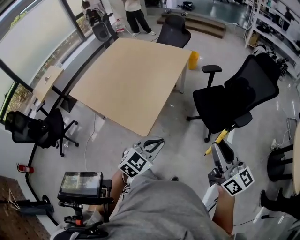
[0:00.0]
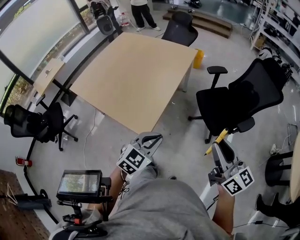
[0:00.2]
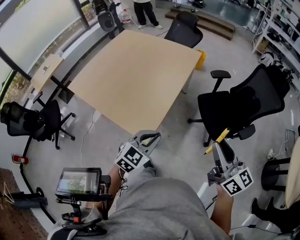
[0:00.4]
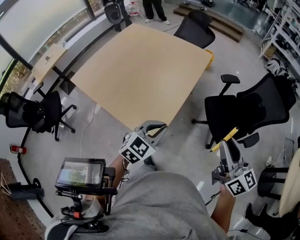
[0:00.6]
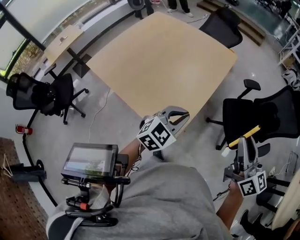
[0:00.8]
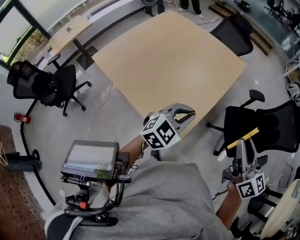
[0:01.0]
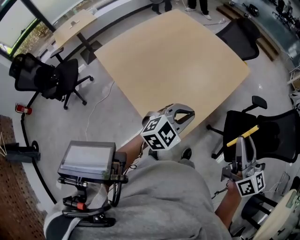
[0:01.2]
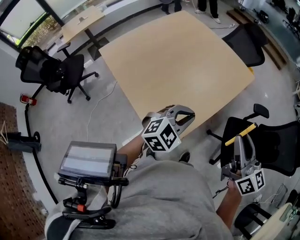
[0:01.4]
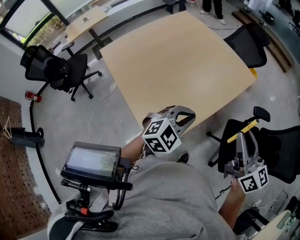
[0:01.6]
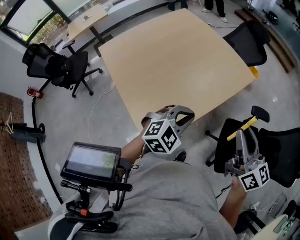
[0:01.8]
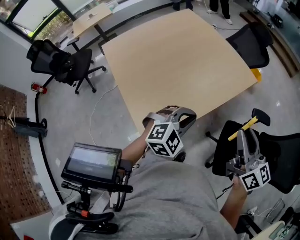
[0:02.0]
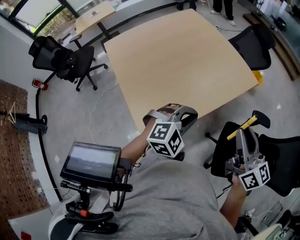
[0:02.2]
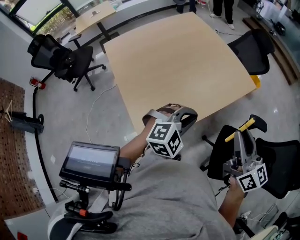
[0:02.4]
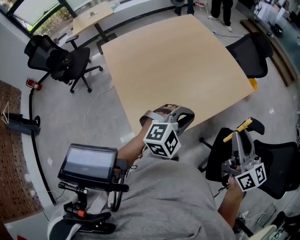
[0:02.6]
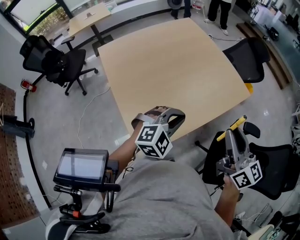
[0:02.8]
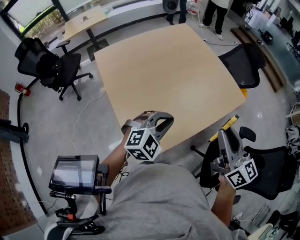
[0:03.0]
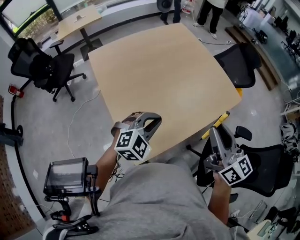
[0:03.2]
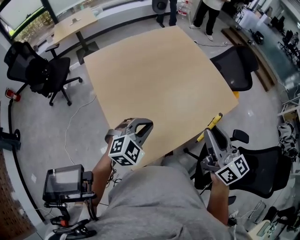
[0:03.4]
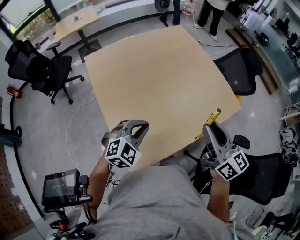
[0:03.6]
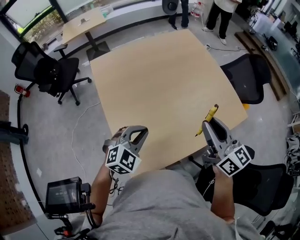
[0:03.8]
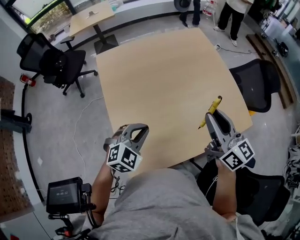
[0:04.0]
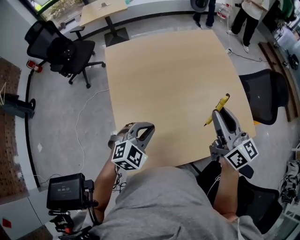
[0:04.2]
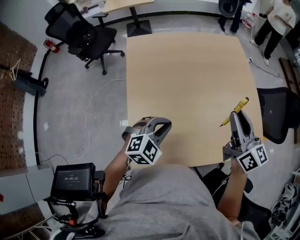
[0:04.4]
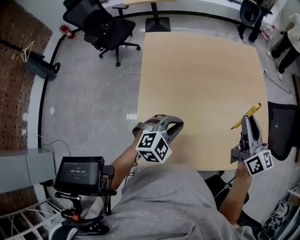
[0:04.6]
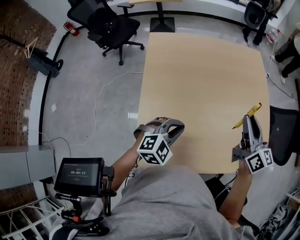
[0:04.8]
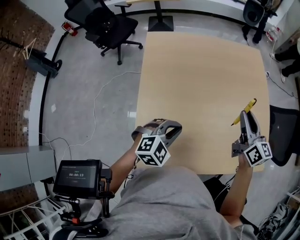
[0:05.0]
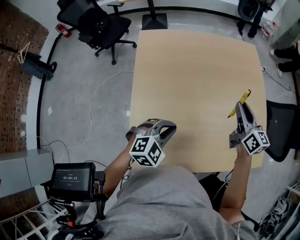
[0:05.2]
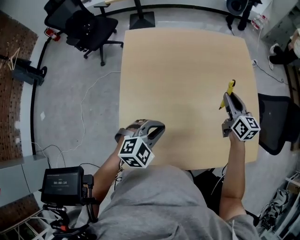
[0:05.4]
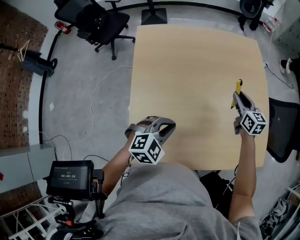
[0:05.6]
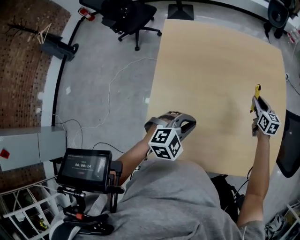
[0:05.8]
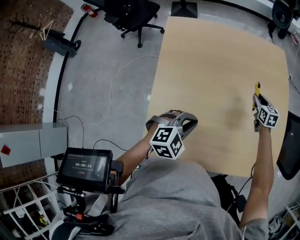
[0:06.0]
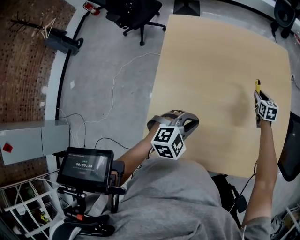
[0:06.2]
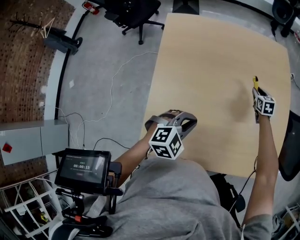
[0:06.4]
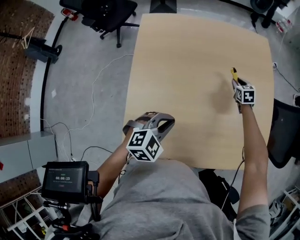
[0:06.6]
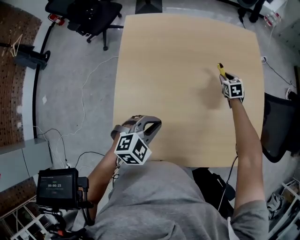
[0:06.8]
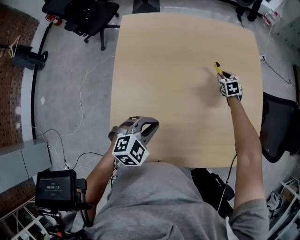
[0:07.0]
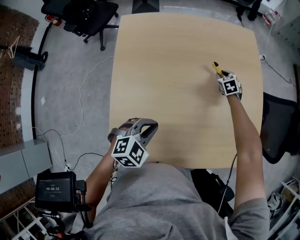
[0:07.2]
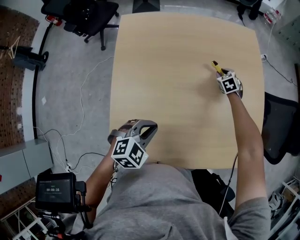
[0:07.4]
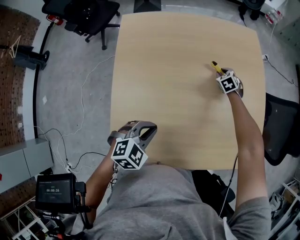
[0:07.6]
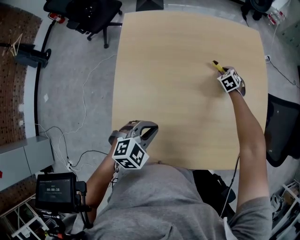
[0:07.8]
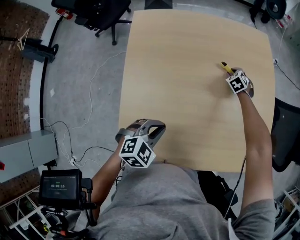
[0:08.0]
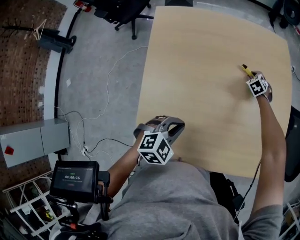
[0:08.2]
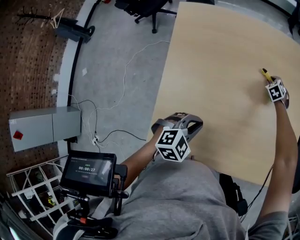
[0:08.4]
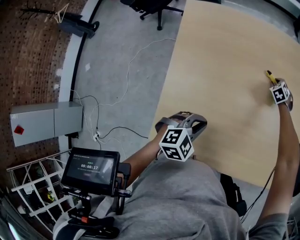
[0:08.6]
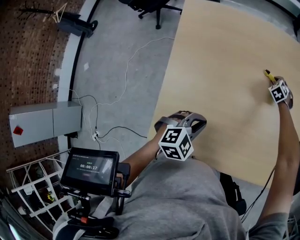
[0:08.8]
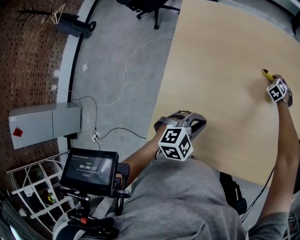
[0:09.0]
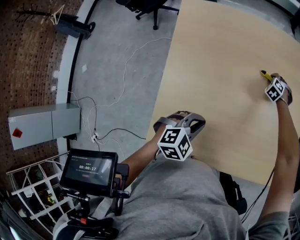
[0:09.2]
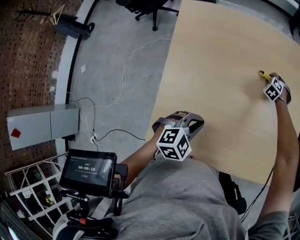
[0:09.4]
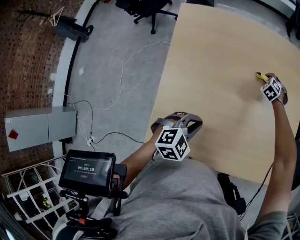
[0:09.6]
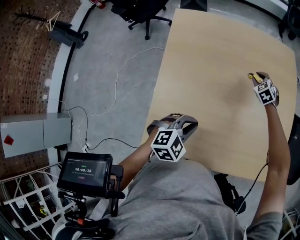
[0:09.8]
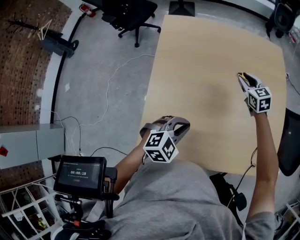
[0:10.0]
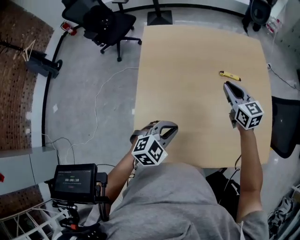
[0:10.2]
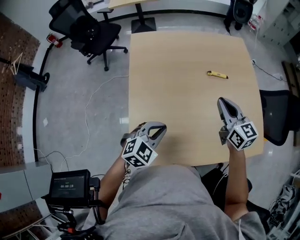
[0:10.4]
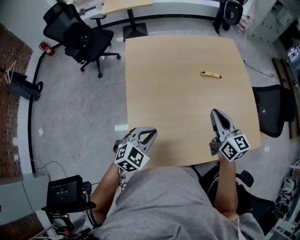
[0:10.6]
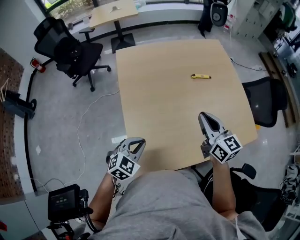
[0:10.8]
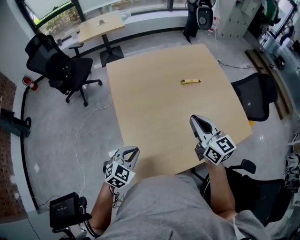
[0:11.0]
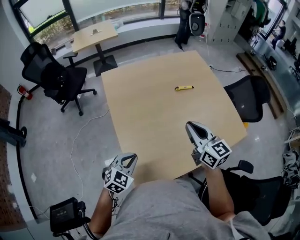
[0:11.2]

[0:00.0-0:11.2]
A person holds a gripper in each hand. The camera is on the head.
0:00.0 to 0:01.6: The right gripper shifts some 40 cm forward and to the left, and swivels approximately 20 degrees; the left gripper travels forward by roughly 30 cm.
0:01.6 to 0:03.2: The right gripper shifts about 15 cm forward and to the left; the left gripper shifts roughly 15 cm to the left and forward.
0:03.2 to 0:04.8: The left gripper is displaced forward and downward by roughly 15 cm, and turns by some 30 degrees; the right gripper shifts roughly 35 cm forward, and turns by some 20 degrees.
0:04.8 to 0:06.4: The right gripper goes about 35 cm downward and forward, and tilts its fingers about 40 degrees downward.
0:06.4 to 0:08.0: The right gripper travels downward by roughly 5 cm, and changes its angle by approximately 40 degrees.
0:09.6 to 0:11.2: The right gripper is displaced backward and upward by roughly 50 cm, points its fingers roughly 50 degrees further upward, and closes its fingers; the left gripper heads to the left and backward, covering some 20 cm.

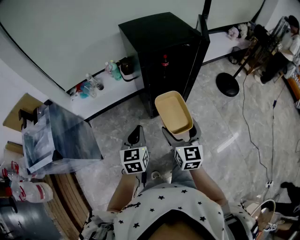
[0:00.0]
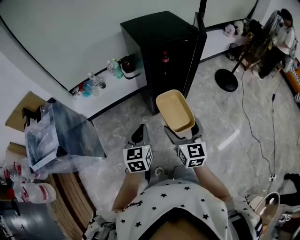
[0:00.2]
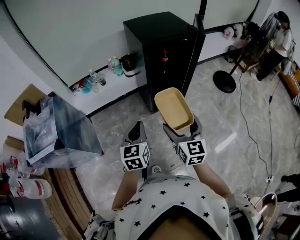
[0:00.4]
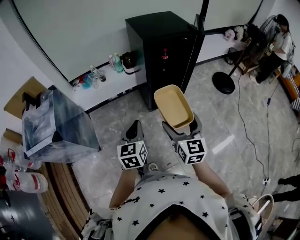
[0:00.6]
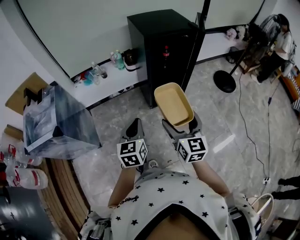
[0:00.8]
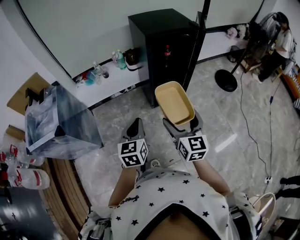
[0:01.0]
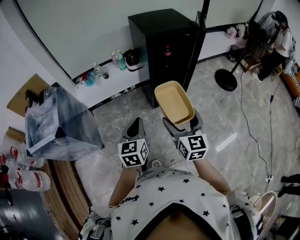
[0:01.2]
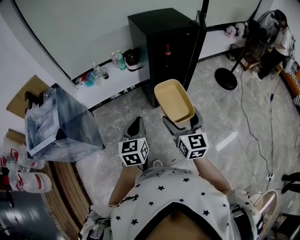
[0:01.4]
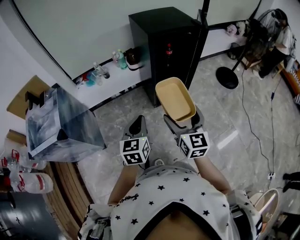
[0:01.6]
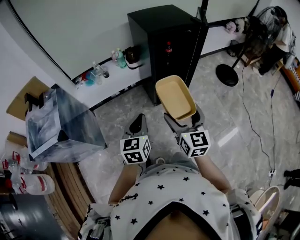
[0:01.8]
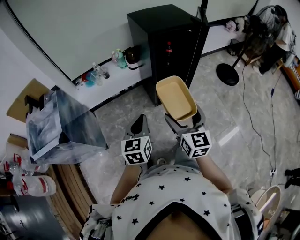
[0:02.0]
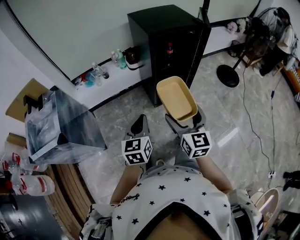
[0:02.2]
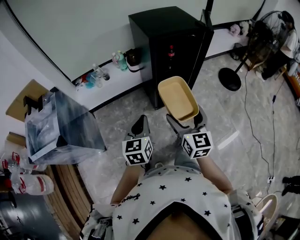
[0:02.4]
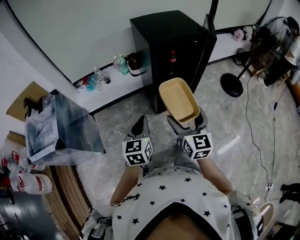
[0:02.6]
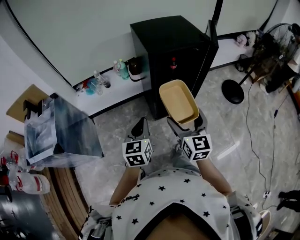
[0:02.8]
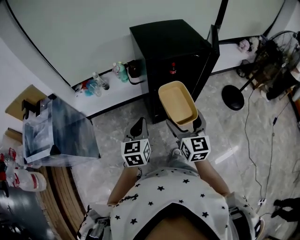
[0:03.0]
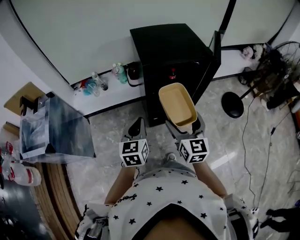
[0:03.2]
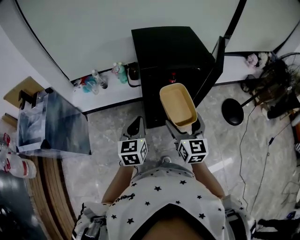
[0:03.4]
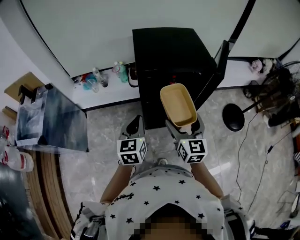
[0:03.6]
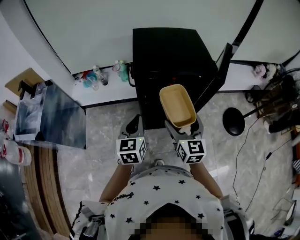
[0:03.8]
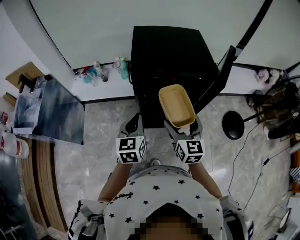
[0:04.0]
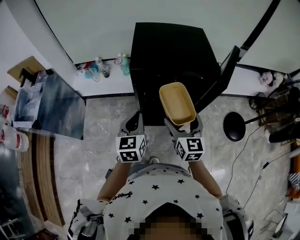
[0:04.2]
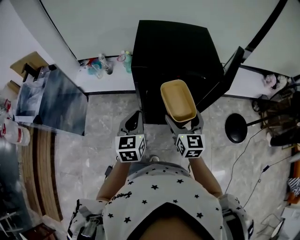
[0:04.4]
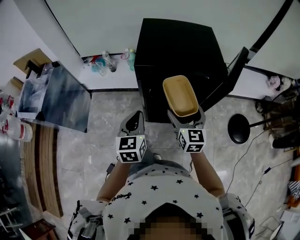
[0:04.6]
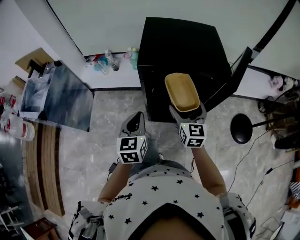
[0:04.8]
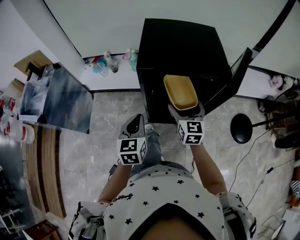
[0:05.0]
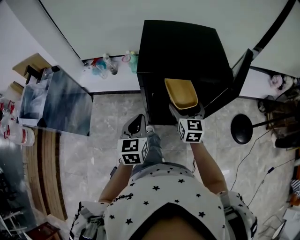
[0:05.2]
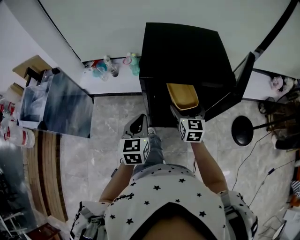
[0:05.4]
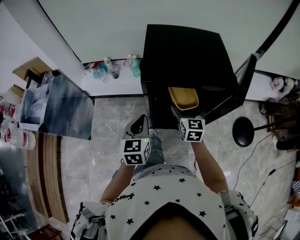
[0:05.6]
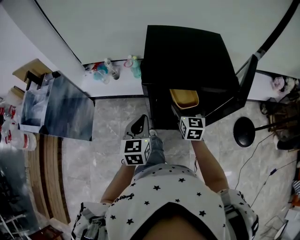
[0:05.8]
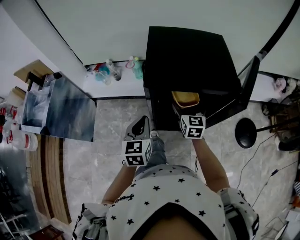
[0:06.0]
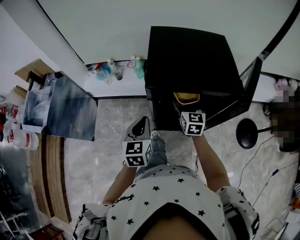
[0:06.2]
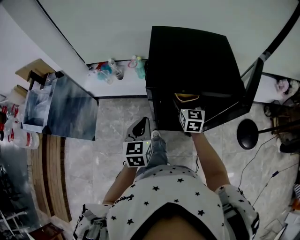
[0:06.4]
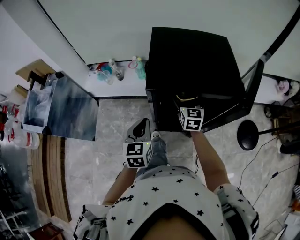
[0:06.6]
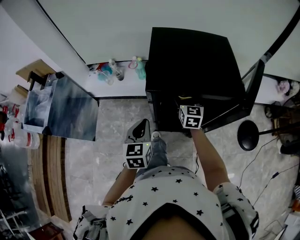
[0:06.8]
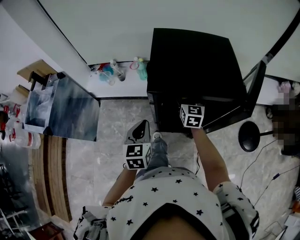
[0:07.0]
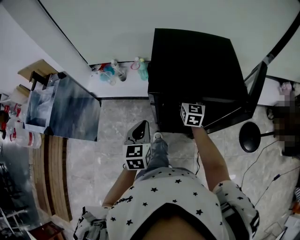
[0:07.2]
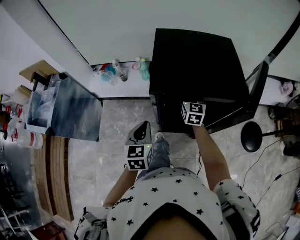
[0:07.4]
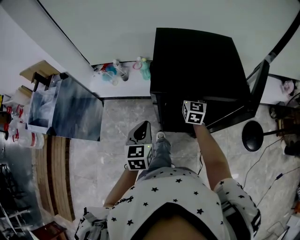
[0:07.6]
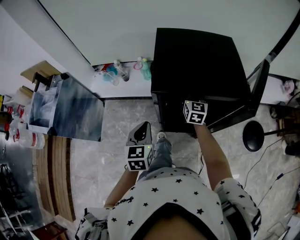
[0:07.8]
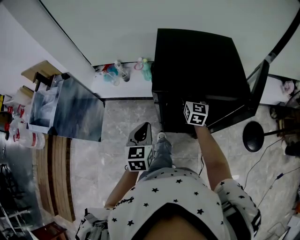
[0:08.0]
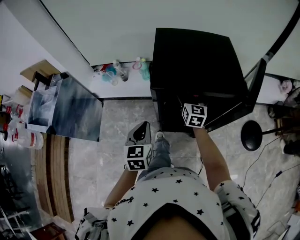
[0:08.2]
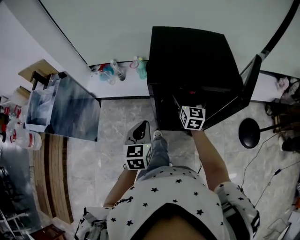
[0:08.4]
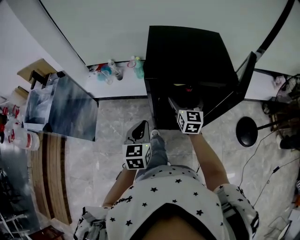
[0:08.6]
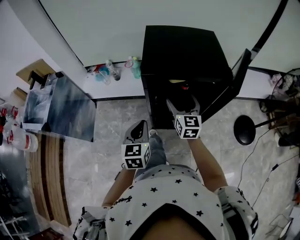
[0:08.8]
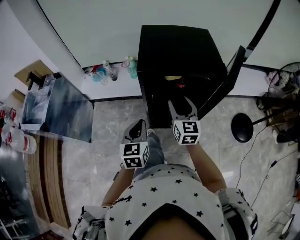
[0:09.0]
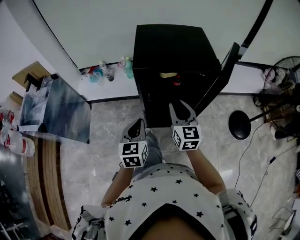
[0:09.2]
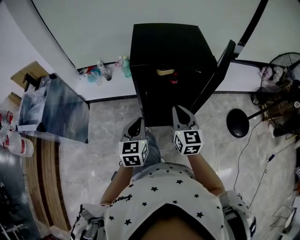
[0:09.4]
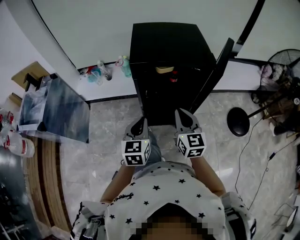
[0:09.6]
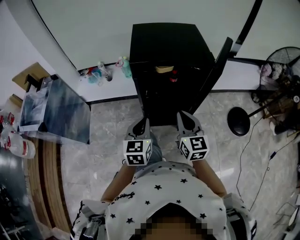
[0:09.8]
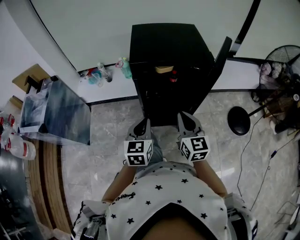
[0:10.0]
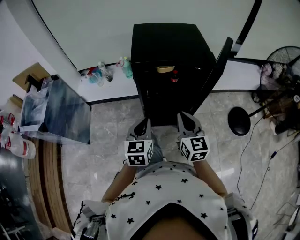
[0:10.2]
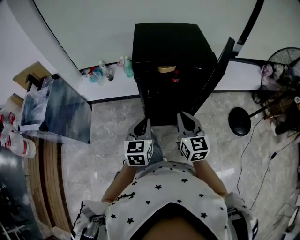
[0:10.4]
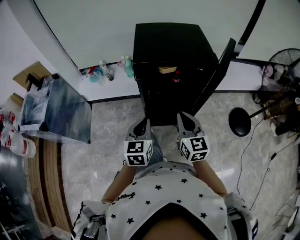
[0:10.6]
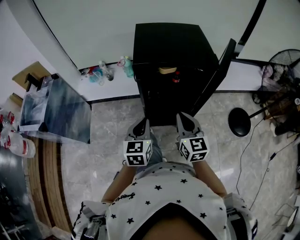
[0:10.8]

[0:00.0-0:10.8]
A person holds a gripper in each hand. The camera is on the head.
0:00.0 to 0:01.6: The two grippers go approximately 10 cm backward.
0:01.6 to 0:03.0: The grippers both shift forward by about 20 cm.
0:03.0 to 0:04.6: The right gripper travels forward and to the right by about 20 cm. The left gripper is displaced to the right and forward by roughly 15 cm.
0:04.6 to 0:06.2: The left gripper travels forward by approximately 5 cm; the right gripper moves forward, roughly 15 cm.
0:06.2 to 0:07.8: The right gripper shifts roughly 5 cm forward.
0:07.8 to 0:09.2: The left gripper heads backward, covering roughly 10 cm, while the right gripper goes roughly 25 cm backward, and closes its fingers.
0:09.2 to 0:10.8: The right gripper moves backward, approximately 10 cm.

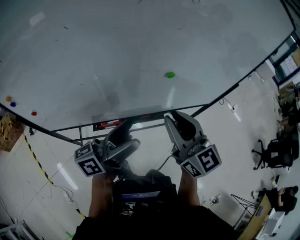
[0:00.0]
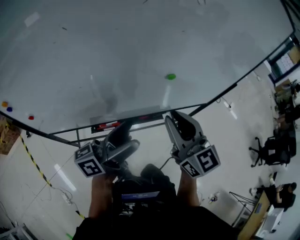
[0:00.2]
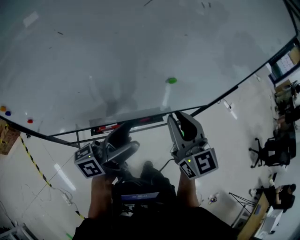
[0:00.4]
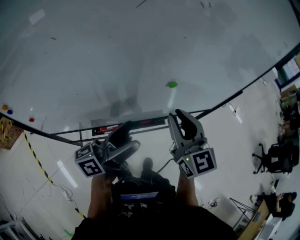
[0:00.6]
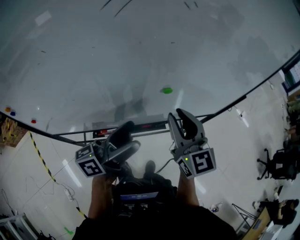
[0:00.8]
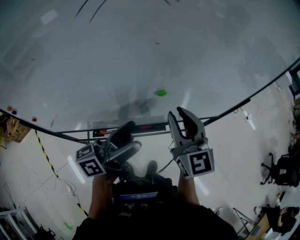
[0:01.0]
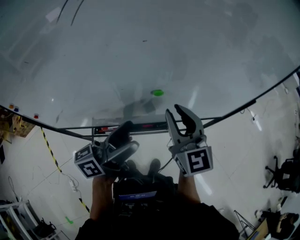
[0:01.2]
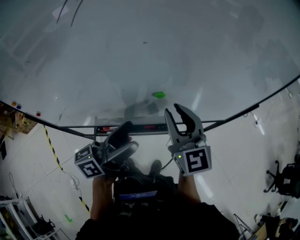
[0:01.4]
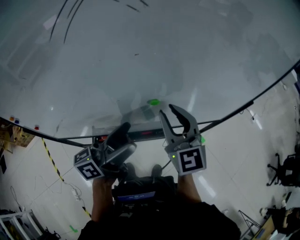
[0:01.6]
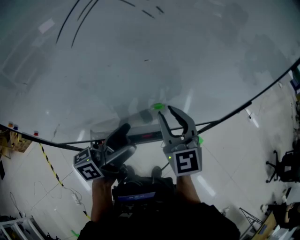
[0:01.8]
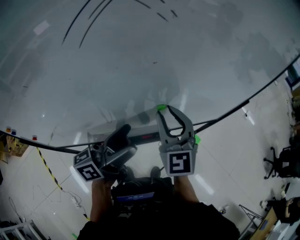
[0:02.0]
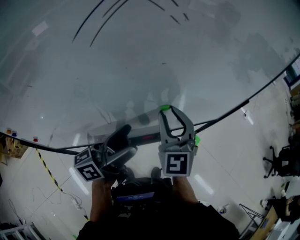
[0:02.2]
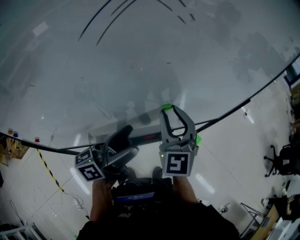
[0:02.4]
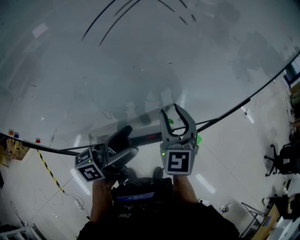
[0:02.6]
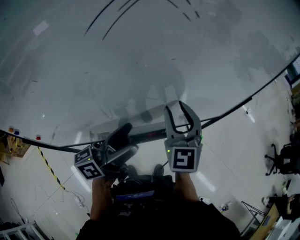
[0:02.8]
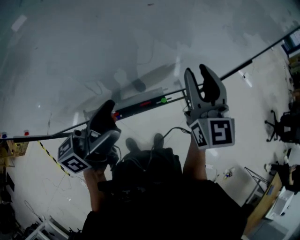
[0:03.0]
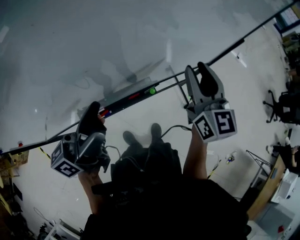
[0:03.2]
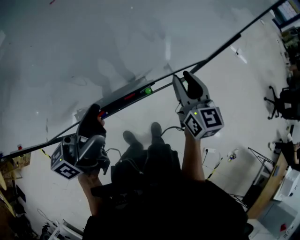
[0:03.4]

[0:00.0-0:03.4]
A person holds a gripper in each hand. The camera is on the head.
0:00.0 to 0:01.6: The left gripper goes about 15 cm forward and to the right. The right gripper shifts roughly 15 cm forward.
0:01.6 to 0:03.4: The right gripper heads to the right and downward, covering about 20 cm, and rotates roughly 30 degrees.
